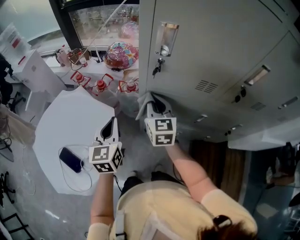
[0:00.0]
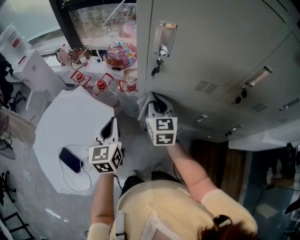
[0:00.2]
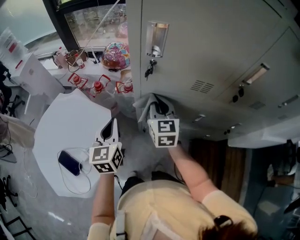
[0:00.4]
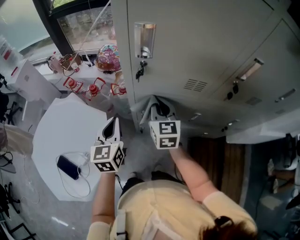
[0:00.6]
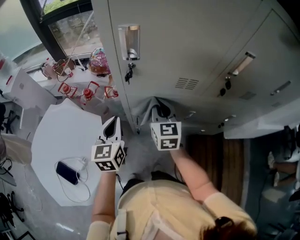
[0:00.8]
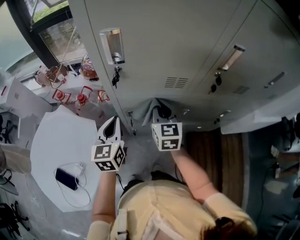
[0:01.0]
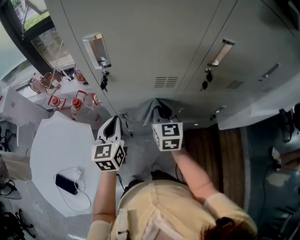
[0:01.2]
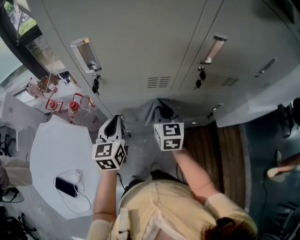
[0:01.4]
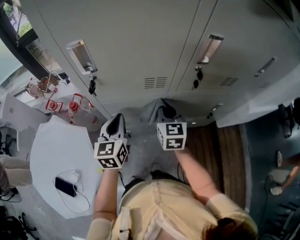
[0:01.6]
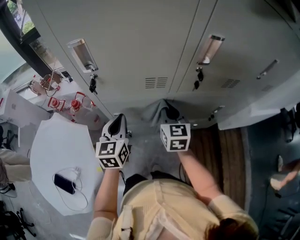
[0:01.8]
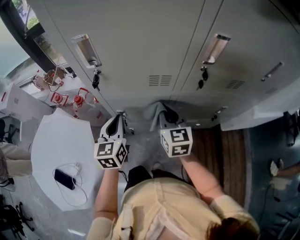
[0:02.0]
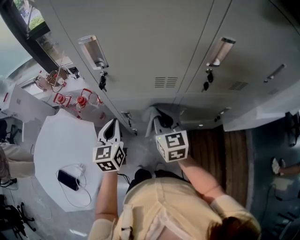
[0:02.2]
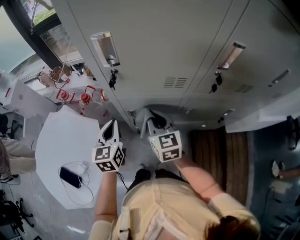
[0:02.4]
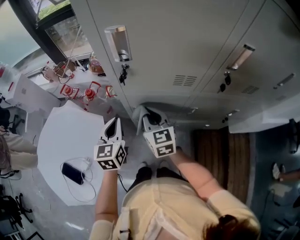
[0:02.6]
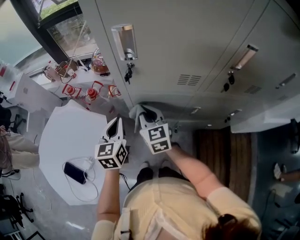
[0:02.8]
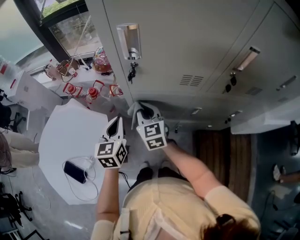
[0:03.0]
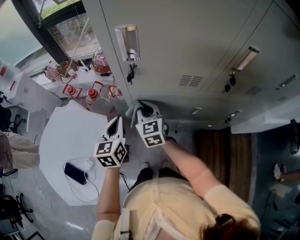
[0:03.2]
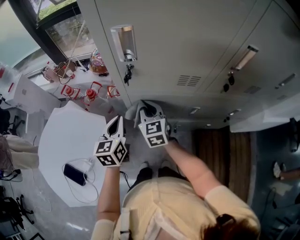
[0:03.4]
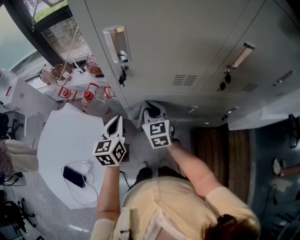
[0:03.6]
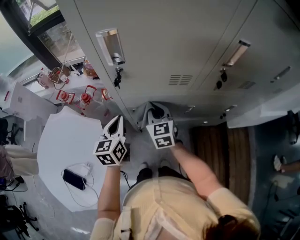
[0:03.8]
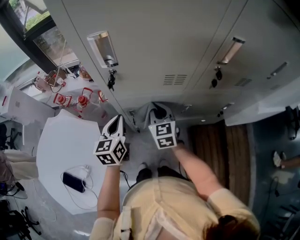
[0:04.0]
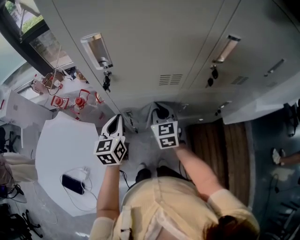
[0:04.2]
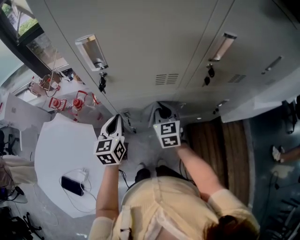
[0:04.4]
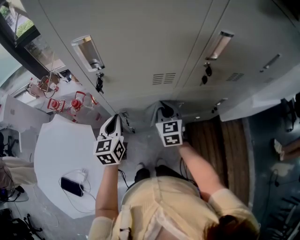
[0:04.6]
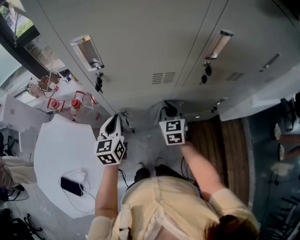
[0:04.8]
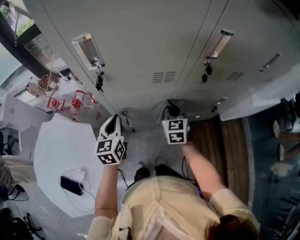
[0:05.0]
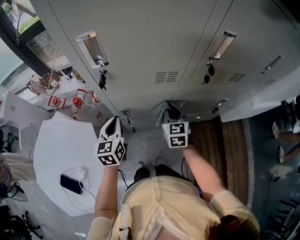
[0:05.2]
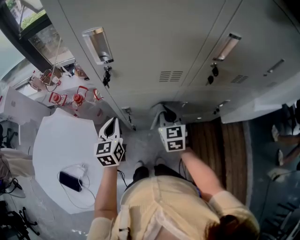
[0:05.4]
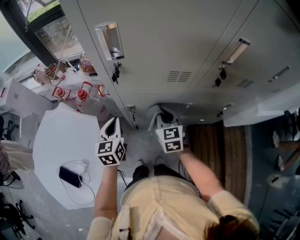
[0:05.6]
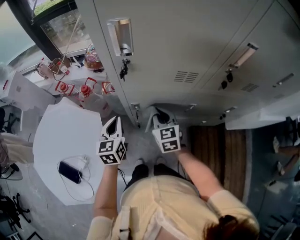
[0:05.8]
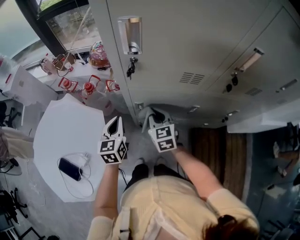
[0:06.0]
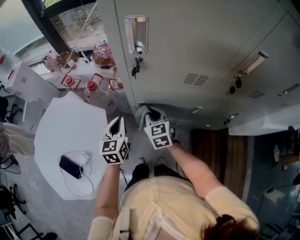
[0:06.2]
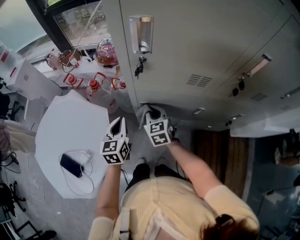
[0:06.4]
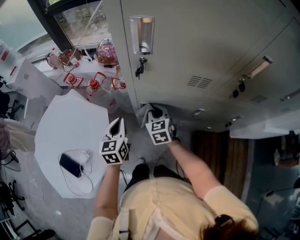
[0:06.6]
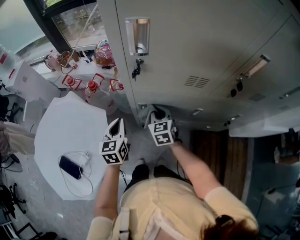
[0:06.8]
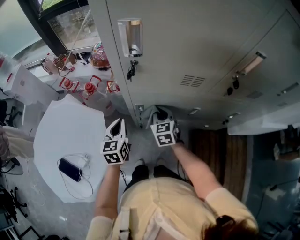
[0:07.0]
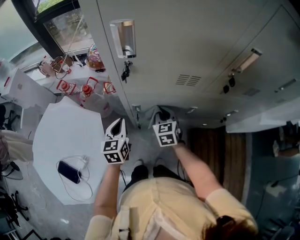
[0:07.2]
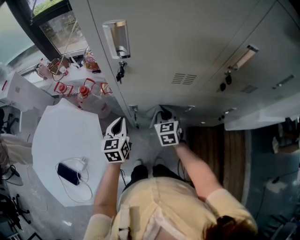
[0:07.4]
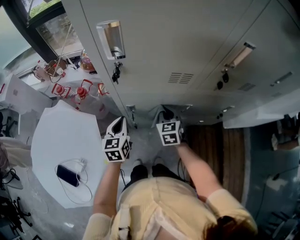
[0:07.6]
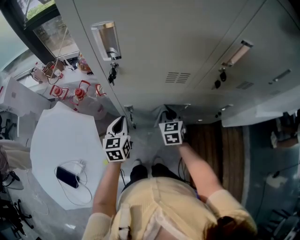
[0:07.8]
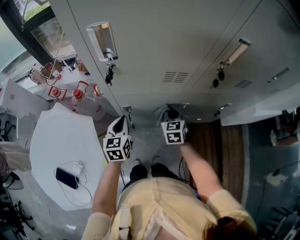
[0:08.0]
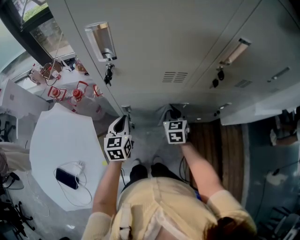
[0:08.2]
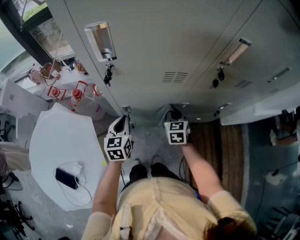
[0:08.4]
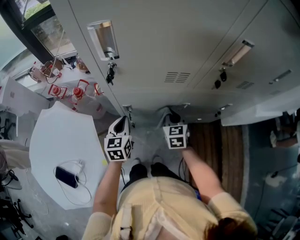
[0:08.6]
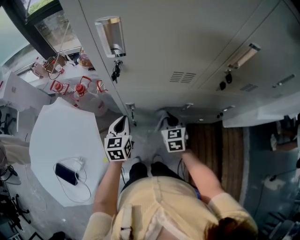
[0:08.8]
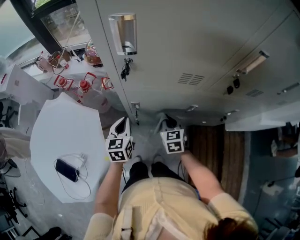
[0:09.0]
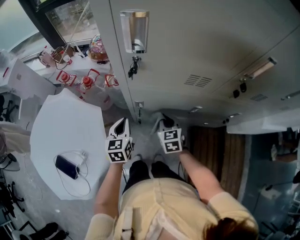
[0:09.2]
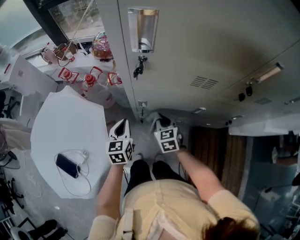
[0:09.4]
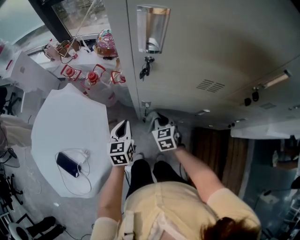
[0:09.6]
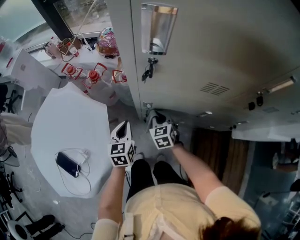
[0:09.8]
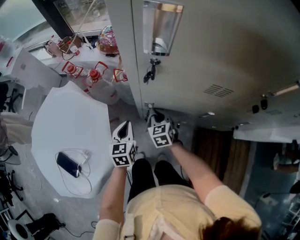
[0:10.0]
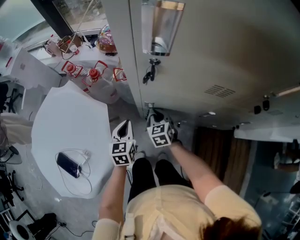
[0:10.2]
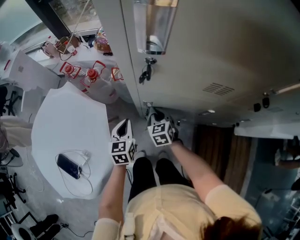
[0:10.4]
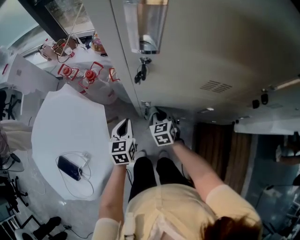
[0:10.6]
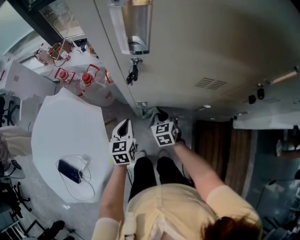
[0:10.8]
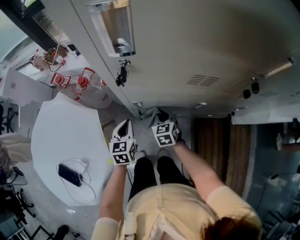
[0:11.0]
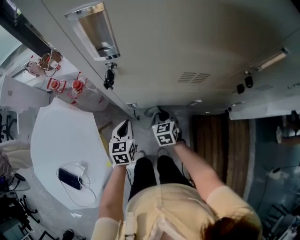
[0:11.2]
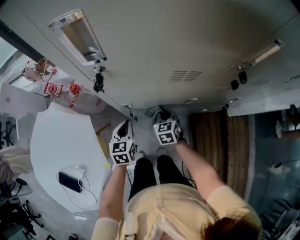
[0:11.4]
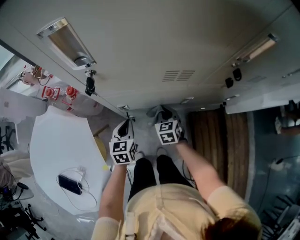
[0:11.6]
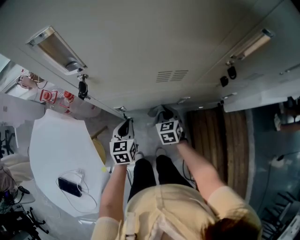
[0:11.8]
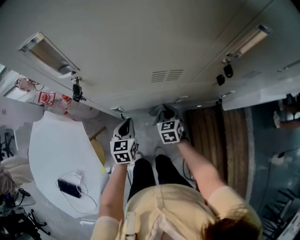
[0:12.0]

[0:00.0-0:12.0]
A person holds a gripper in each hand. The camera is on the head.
0:00.0 to 0:01.6: The left gripper moves to the right and forward, approximately 20 cm. The right gripper travels to the right by approximately 20 cm.
0:01.6 to 0:03.0: The left gripper moves to the left, roughly 10 cm, while the right gripper goes about 20 cm to the left, and changes its angle by some 20 degrees.
0:03.0 to 0:04.4: The right gripper travels to the right by roughly 15 cm. The left gripper shifts approximately 5 cm to the right.
0:04.4 to 0:06.0: The left gripper moves to the left, approximately 5 cm. Meanwhile the right gripper is displaced to the left by about 10 cm.
0:06.0 to 0:07.6: The left gripper travels to the right by roughly 5 cm, while the right gripper goes roughly 10 cm to the right.
0:07.6 to 0:09.0: The right gripper changes place by about 5 cm.
0:09.0 to 0:10.4: The right gripper is displaced to the left and downward by about 15 cm, while the left gripper is displaced downward by about 5 cm.
0:10.4 to 0:12.0: Both grippers travel together to the right, about 15 cm. The right gripper changes its angle by some 20 degrees.

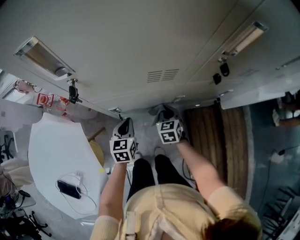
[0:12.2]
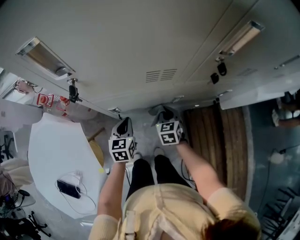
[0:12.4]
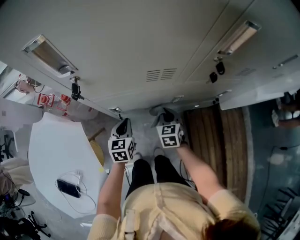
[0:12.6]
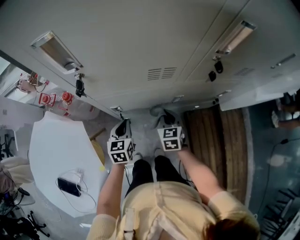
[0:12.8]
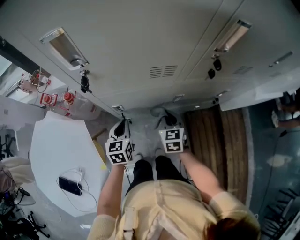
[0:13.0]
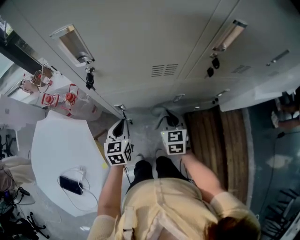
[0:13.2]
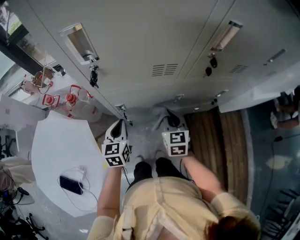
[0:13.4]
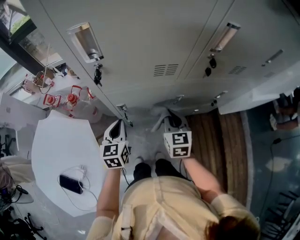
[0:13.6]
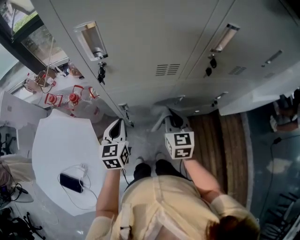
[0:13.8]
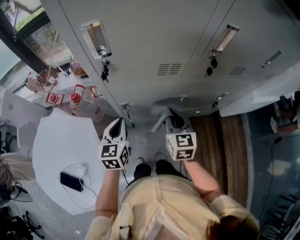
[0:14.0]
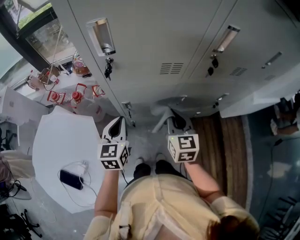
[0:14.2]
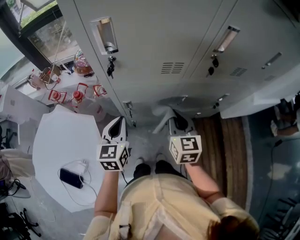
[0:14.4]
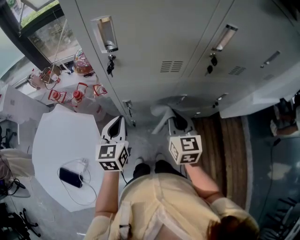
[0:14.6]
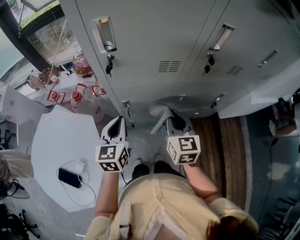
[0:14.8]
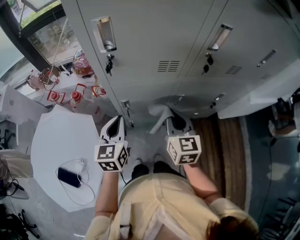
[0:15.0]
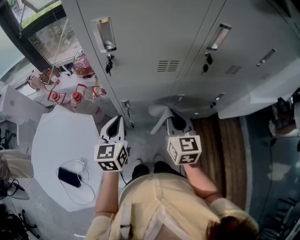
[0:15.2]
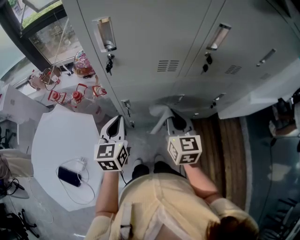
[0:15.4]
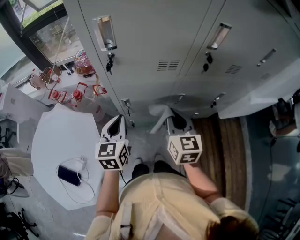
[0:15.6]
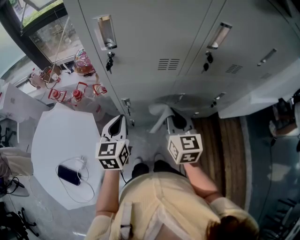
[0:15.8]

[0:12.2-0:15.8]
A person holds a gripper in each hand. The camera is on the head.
0:12.2 to 0:14.0: The grippers both shift upward by roughly 15 cm. The right gripper turns by some 20 degrees.
0:14.0 to 0:15.8: The left gripper ends up approximately 5 cm from where it was. Meanwhile the right gripper moves roughly 5 cm.

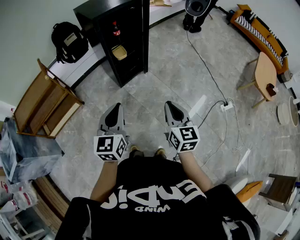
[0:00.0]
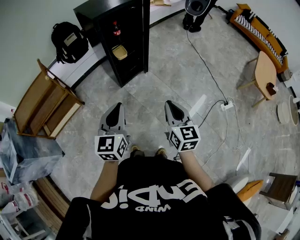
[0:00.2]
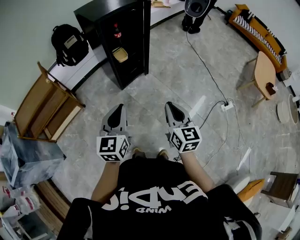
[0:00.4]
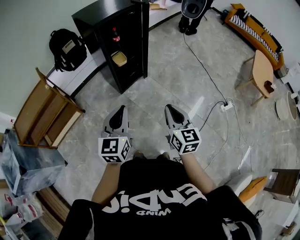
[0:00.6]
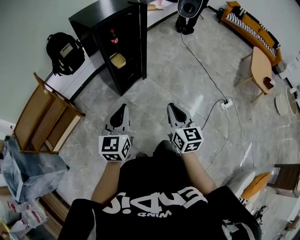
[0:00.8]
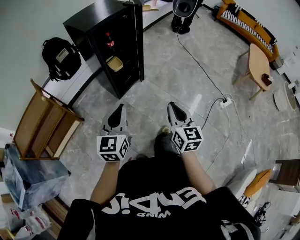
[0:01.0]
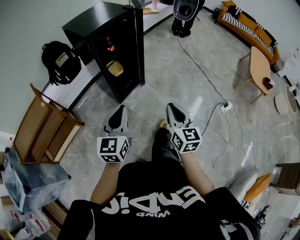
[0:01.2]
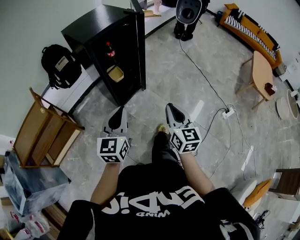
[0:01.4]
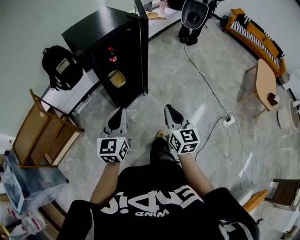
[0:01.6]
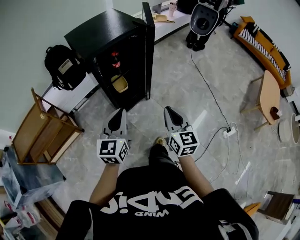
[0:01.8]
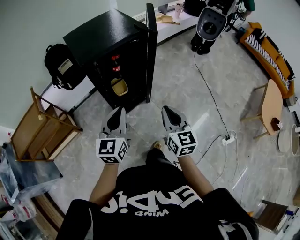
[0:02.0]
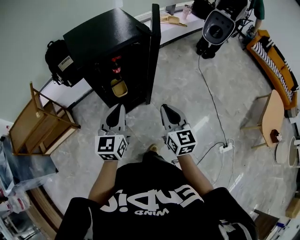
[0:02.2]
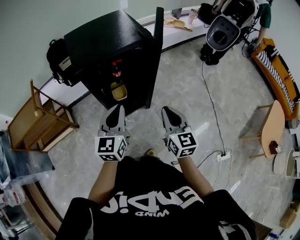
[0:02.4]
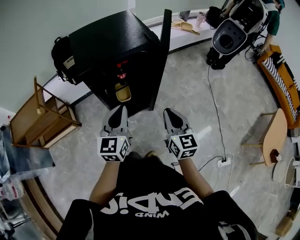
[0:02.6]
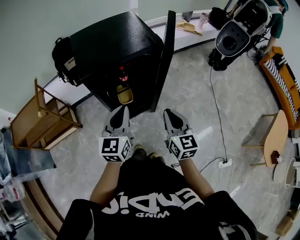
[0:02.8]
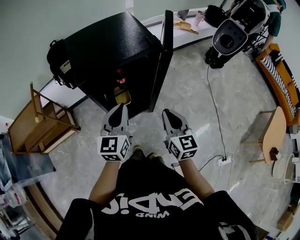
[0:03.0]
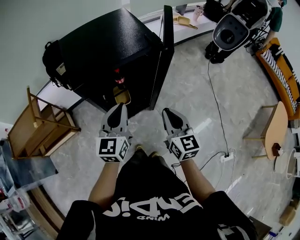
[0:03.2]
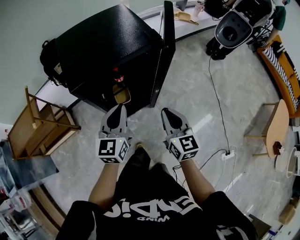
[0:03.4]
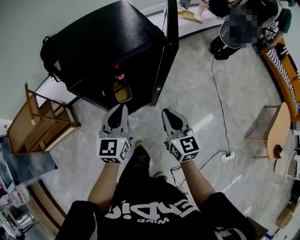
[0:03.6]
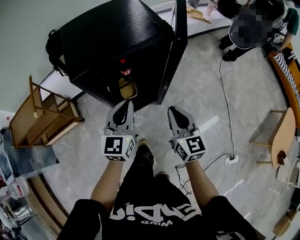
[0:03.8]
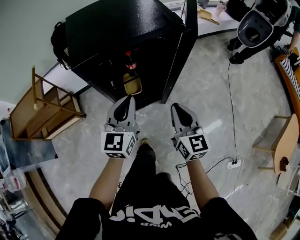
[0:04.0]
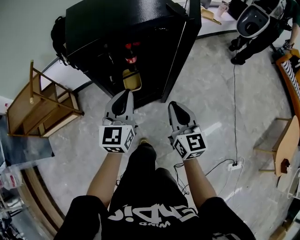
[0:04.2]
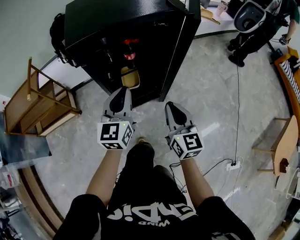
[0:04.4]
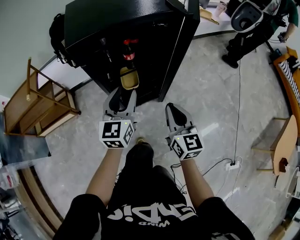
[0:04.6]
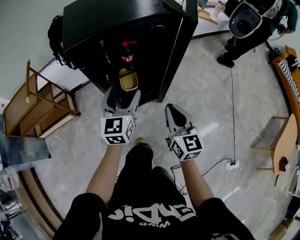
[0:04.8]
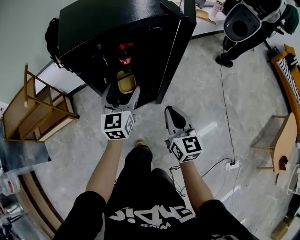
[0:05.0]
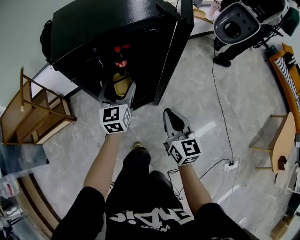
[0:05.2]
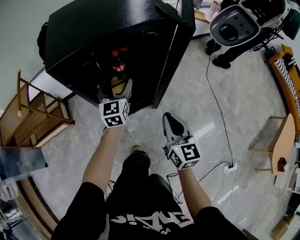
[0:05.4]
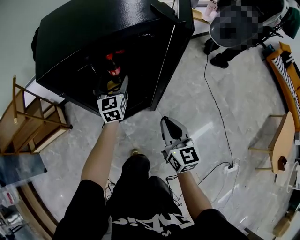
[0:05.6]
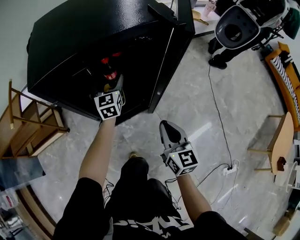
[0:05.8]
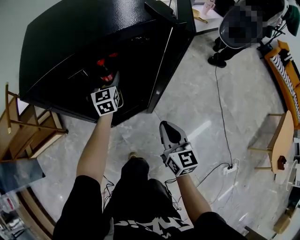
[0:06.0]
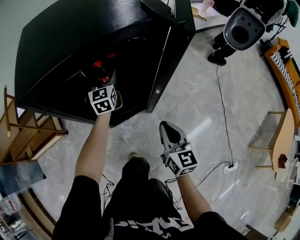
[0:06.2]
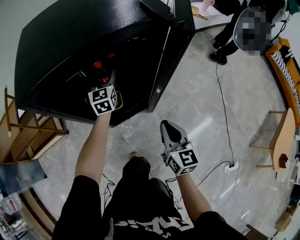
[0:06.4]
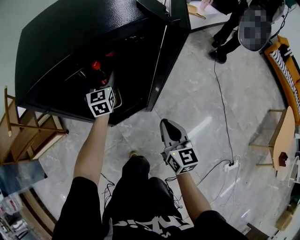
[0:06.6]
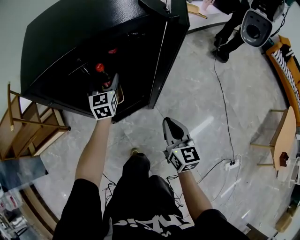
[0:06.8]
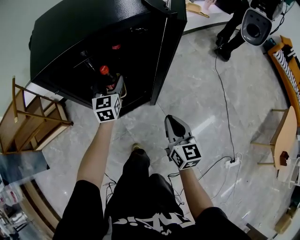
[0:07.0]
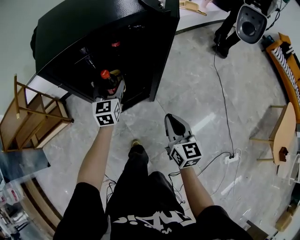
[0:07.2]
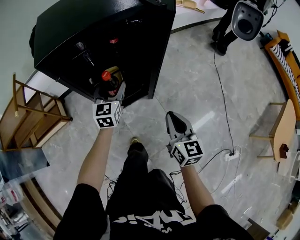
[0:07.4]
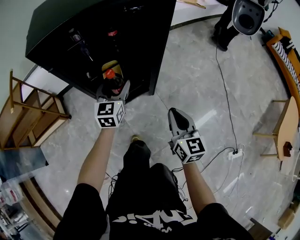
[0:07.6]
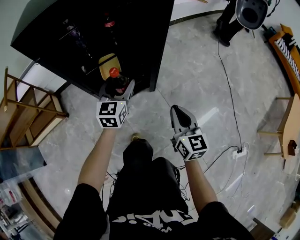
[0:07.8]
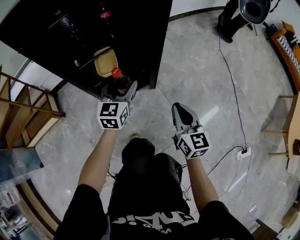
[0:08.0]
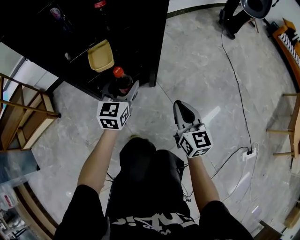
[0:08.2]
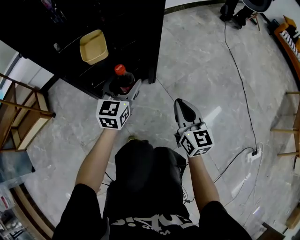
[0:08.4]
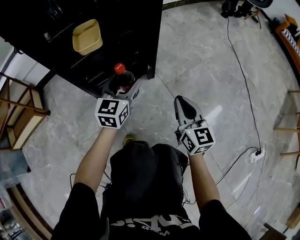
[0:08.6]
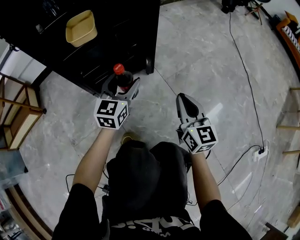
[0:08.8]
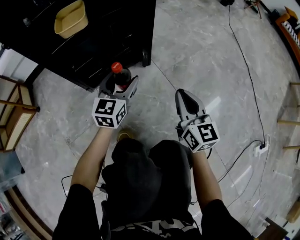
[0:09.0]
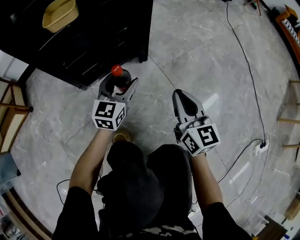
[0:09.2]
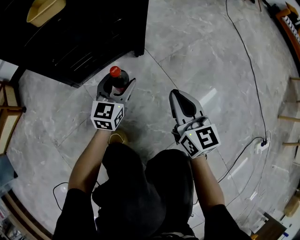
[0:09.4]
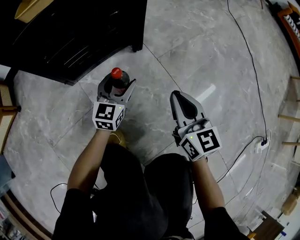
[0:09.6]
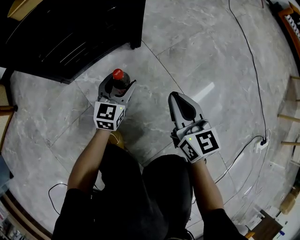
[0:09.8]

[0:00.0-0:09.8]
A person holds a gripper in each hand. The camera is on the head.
0:00.0 to 0:01.4: Both grippers move forward, approximately 15 cm.
0:01.4 to 0:02.8: The grippers both shift forward by some 30 cm. The left gripper rotates approximately 20 degrees. The right gripper rotates approximately 20 degrees.
0:02.8 to 0:04.2: Both grippers travel together downward, some 10 cm.
0:04.2 to 0:05.6: The left gripper heads forward and downward, covering roughly 25 cm, and opens up. The right gripper shifts about 5 cm downward.
0:05.6 to 0:07.0: The left gripper goes forward and returns, roughly 10 cm each way.
0:07.0 to 0:08.4: The left gripper heads downward and backward, covering some 30 cm; the right gripper is displaced downward by roughly 30 cm.
0:08.4 to 0:09.8: The right gripper is displaced downward by roughly 20 cm; the left gripper goes approximately 35 cm downward.
